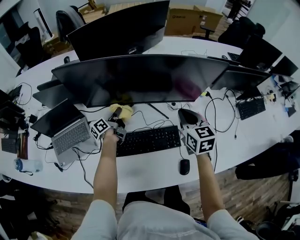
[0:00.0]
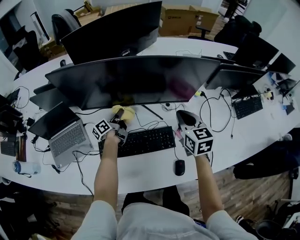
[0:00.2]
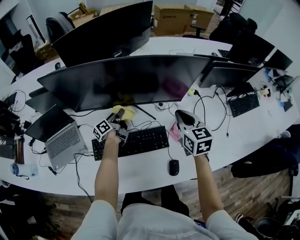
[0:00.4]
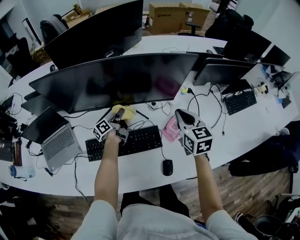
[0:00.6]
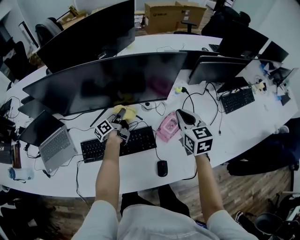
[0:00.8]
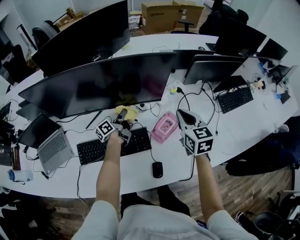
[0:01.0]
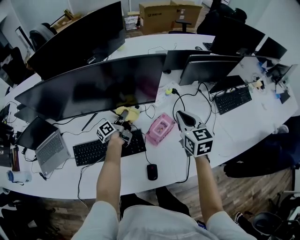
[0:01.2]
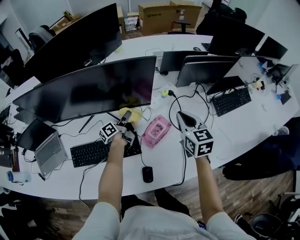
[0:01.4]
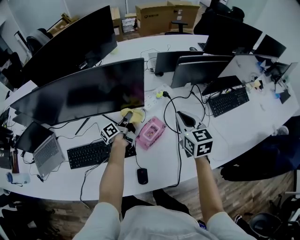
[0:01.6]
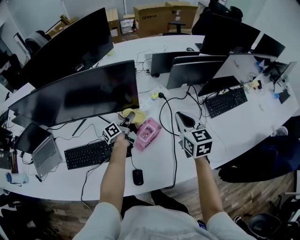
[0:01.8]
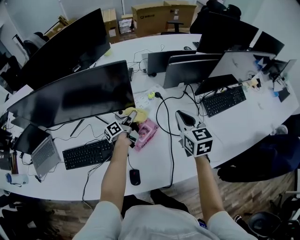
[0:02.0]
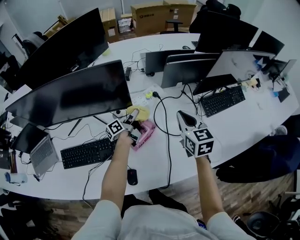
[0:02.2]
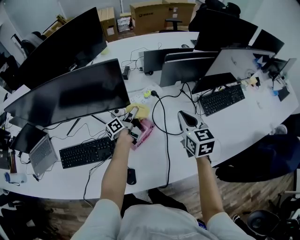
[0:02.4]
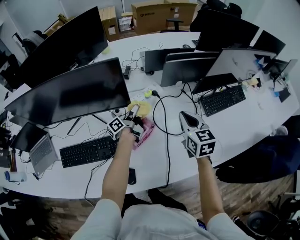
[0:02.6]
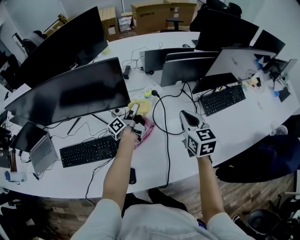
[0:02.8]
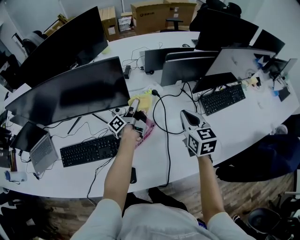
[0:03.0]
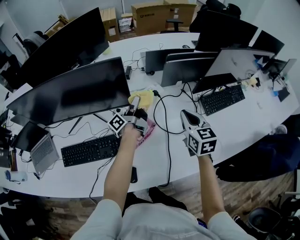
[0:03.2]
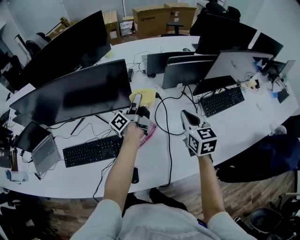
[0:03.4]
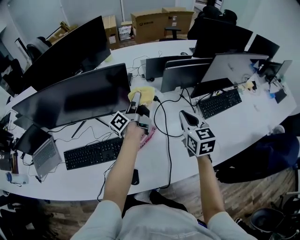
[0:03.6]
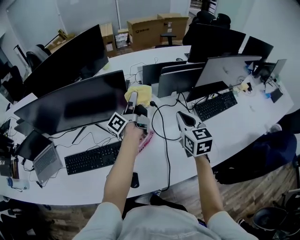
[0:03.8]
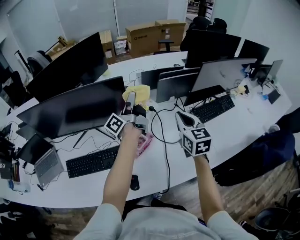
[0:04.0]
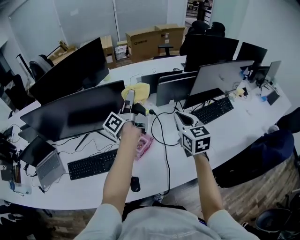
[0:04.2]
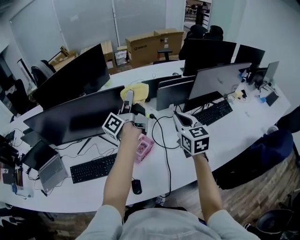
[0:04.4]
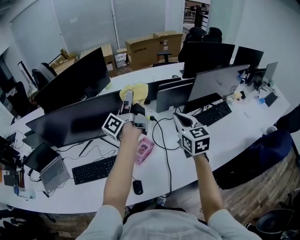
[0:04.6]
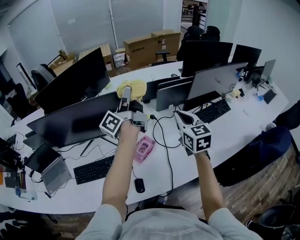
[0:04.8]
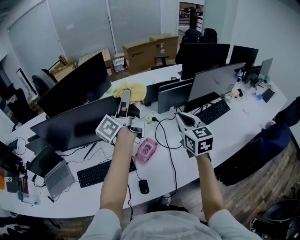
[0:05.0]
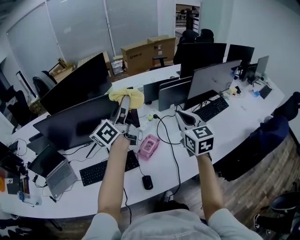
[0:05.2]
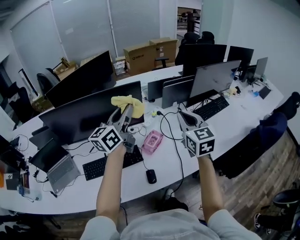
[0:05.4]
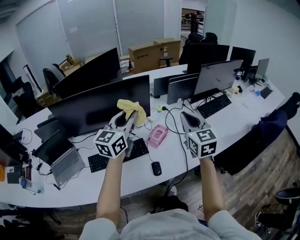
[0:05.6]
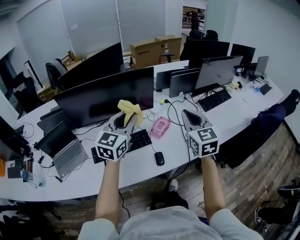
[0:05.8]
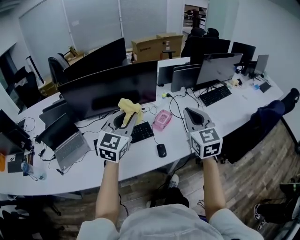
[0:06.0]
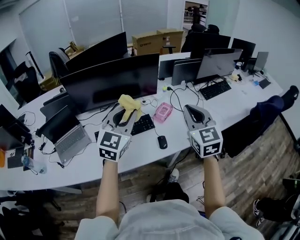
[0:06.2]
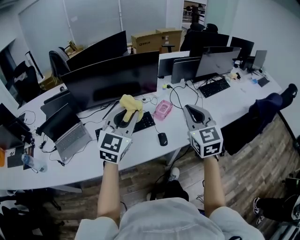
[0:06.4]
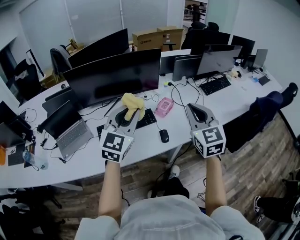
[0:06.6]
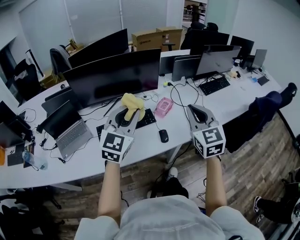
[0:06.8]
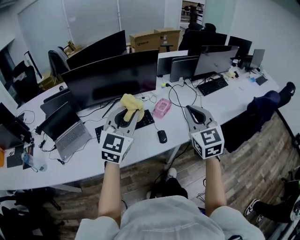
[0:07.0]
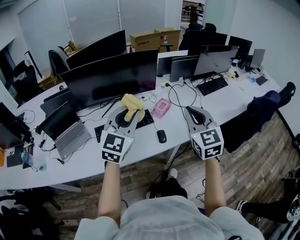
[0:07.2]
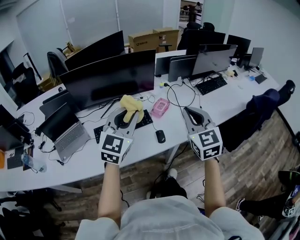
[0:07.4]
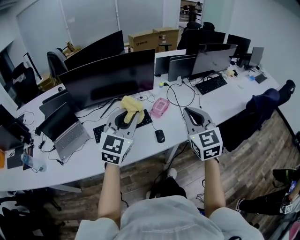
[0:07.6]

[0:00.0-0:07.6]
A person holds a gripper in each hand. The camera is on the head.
0:00.0 to 0:01.6: The two grippers go approximately 30 cm to the right.
0:01.6 to 0:03.0: The right gripper goes approximately 10 cm to the right; the left gripper travels to the right and upward by some 10 cm.
0:03.0 to 0:04.6: The right gripper travels upward by about 15 cm. Meanwhile the left gripper shifts approximately 30 cm upward, and changes its angle by about 20 degrees.
0:04.6 to 0:06.0: The left gripper goes some 35 cm backward, and twists some 90 degrees clockwise, seen from behind. The right gripper moves backward and to the left, roughly 30 cm.
0:06.0 to 0:07.6: Both grippers move backward, roughly 10 cm.

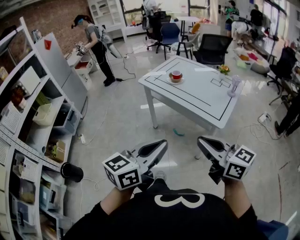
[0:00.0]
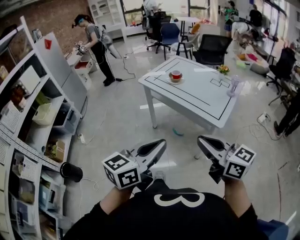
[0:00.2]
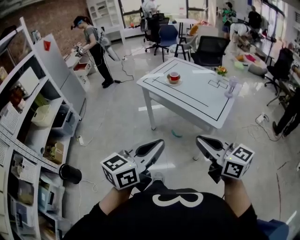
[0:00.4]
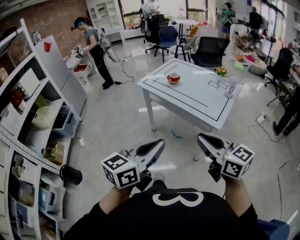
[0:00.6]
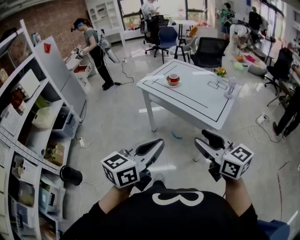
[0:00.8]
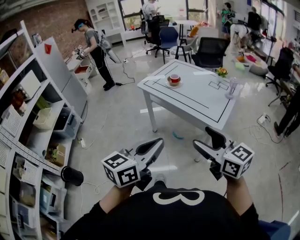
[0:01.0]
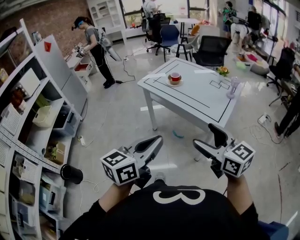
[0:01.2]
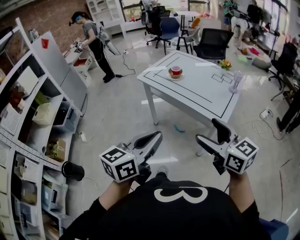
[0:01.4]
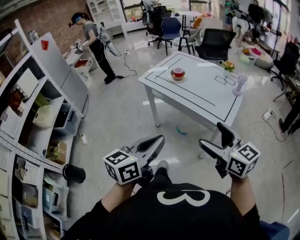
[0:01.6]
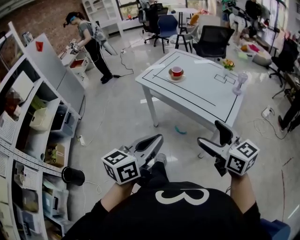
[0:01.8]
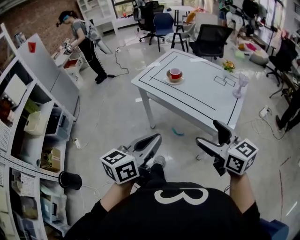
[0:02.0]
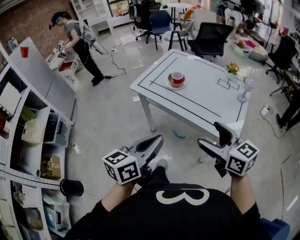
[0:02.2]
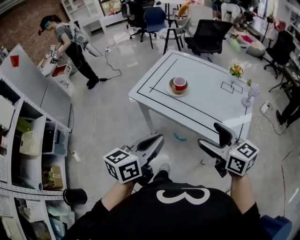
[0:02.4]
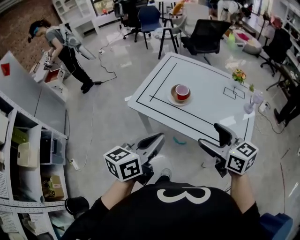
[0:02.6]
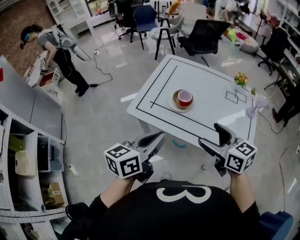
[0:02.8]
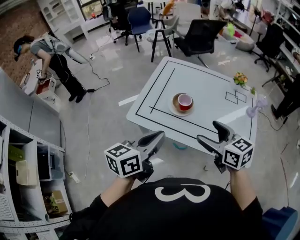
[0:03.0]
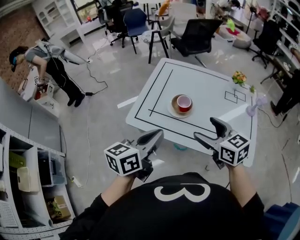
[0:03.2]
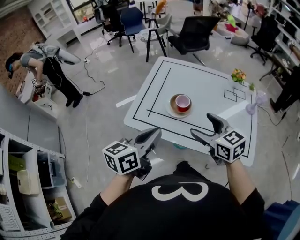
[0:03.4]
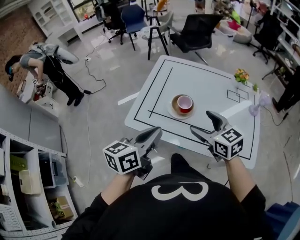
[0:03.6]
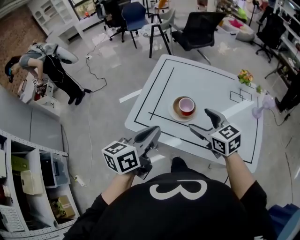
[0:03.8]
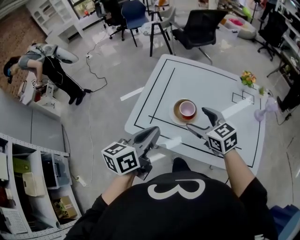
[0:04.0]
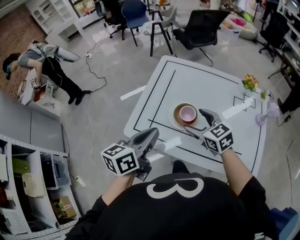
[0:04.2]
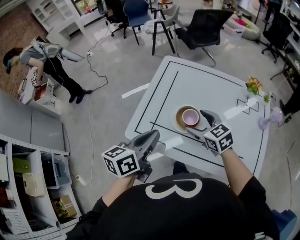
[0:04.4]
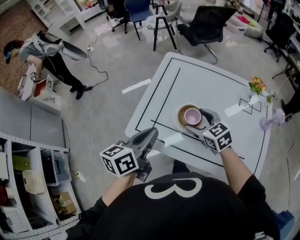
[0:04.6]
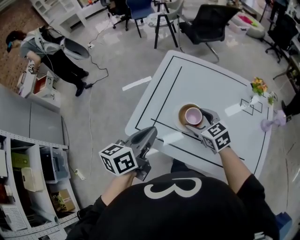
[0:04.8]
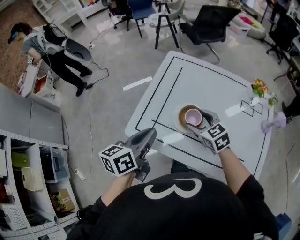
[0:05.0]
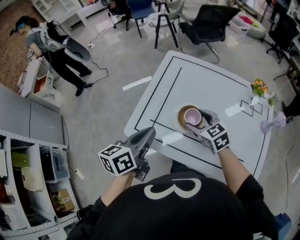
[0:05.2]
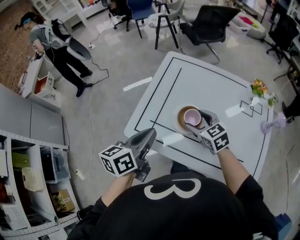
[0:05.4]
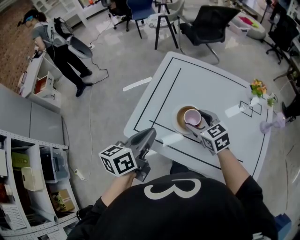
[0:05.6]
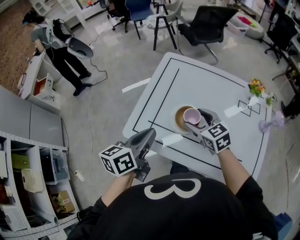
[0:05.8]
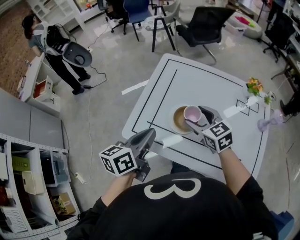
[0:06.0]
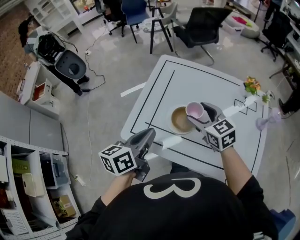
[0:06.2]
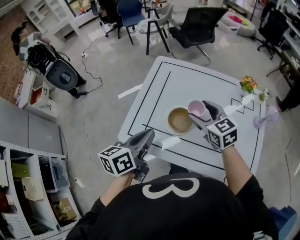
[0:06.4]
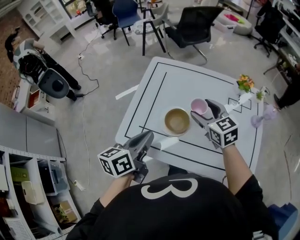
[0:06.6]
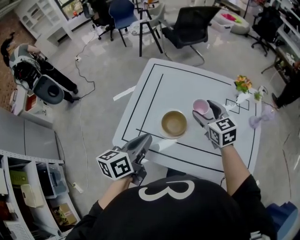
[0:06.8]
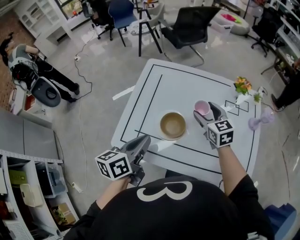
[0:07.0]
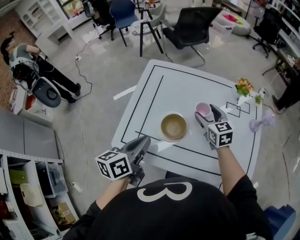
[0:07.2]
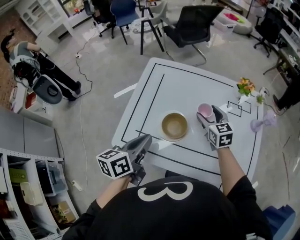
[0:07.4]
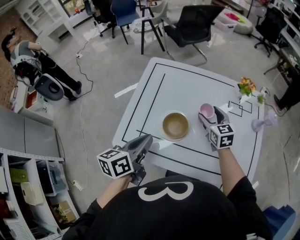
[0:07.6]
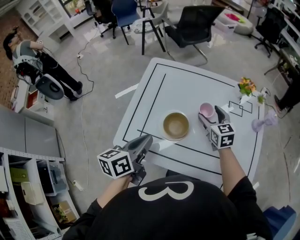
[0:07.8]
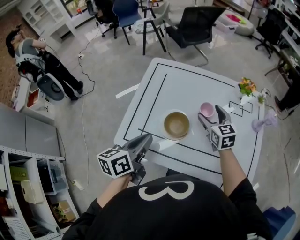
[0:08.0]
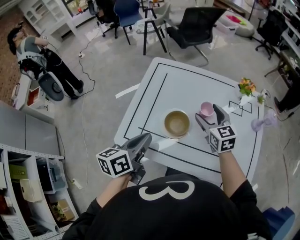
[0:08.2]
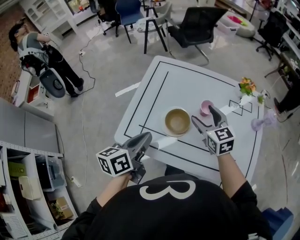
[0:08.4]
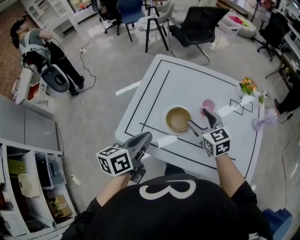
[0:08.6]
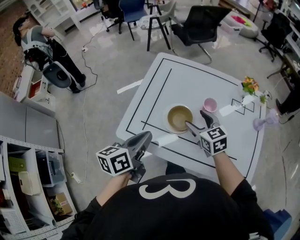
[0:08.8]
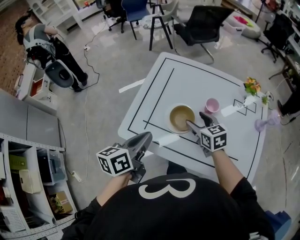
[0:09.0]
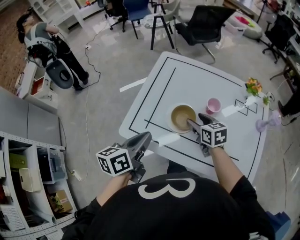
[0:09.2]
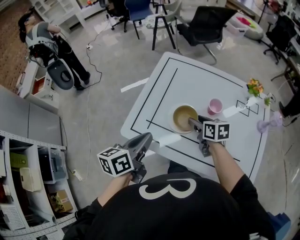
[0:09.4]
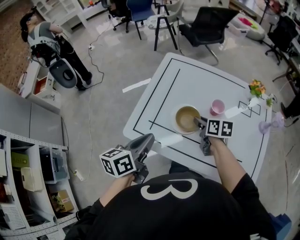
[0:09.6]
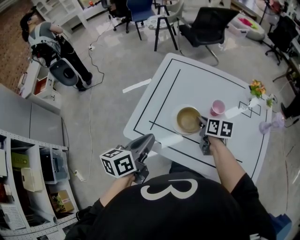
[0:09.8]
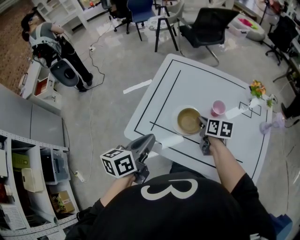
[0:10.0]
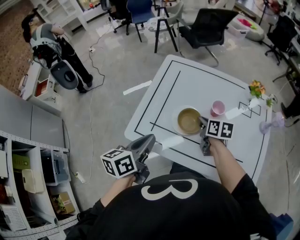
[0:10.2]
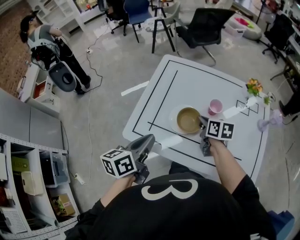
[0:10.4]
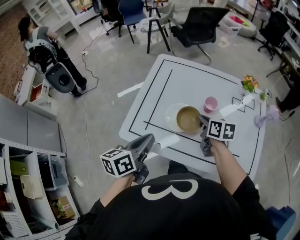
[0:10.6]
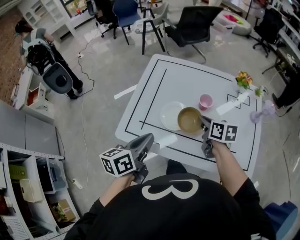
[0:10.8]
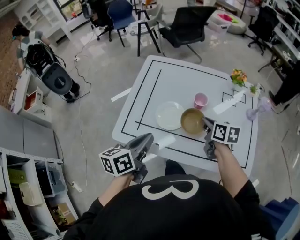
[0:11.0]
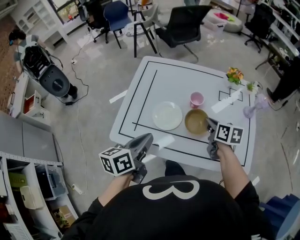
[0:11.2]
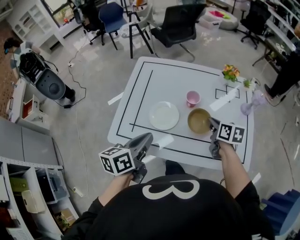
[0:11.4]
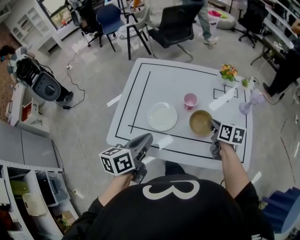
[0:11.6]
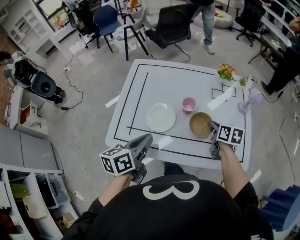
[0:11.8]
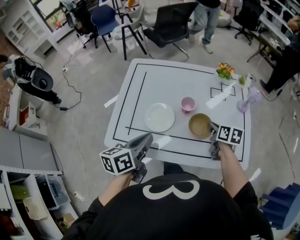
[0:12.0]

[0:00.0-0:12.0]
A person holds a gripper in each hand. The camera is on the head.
0:00.0 to 0:01.6: Both grippers move forward, roughly 10 cm. The right gripper opens up.
0:01.6 to 0:03.0: Both grippers are carried forward, about 40 cm. The right gripper changes its angle by roughly 20 degrees.
0:03.0 to 0:04.4: The left gripper heads forward, covering roughly 15 cm. The right gripper is displaced forward and downward by roughly 20 cm.
0:04.4 to 0:06.0: There are only small adjustments of the grippers.
0:06.0 to 0:07.6: The right gripper goes roughly 15 cm to the right, forward and downward, and rotates about 20 degrees.
0:07.6 to 0:09.0: The right gripper shifts about 10 cm to the left and backward.
0:09.0 to 0:10.4: The right gripper rotates approximately 30 degrees, and closes up.
0:10.4 to 0:12.0: The left gripper moves to the right, roughly 10 cm, while the right gripper moves to the right, about 20 cm.

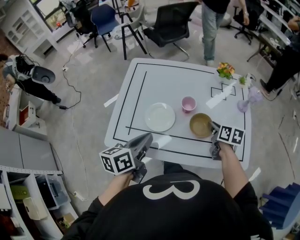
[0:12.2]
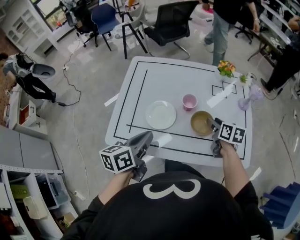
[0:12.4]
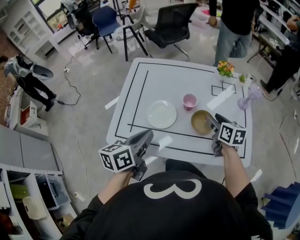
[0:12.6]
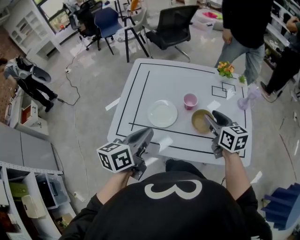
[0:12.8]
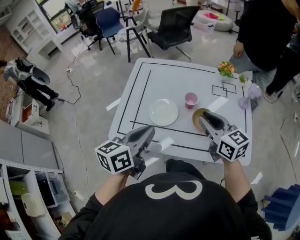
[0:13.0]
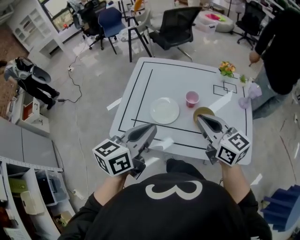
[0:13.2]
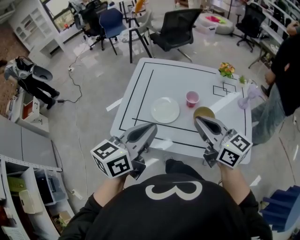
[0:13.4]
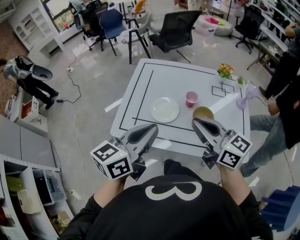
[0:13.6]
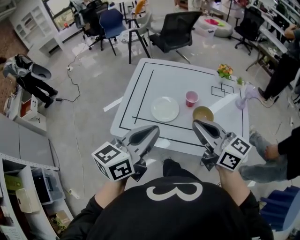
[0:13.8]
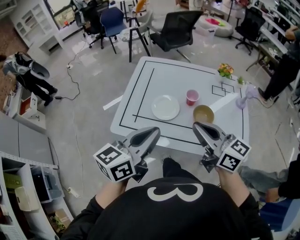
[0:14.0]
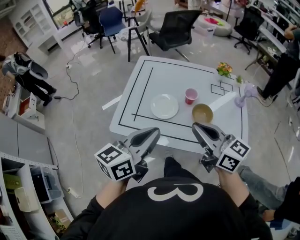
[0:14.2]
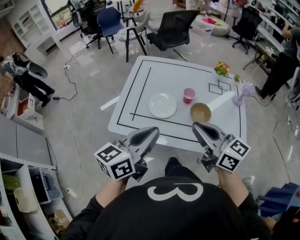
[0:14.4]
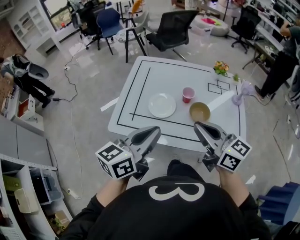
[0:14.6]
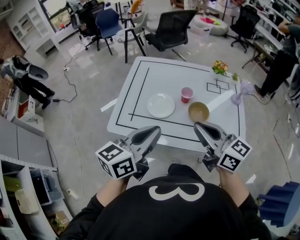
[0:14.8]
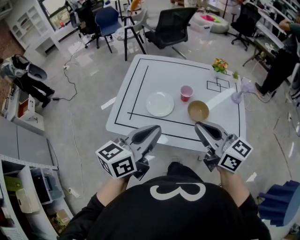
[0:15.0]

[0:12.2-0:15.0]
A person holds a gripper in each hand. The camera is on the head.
0:12.2 to 0:13.6: The right gripper travels upward, to the left and backward by some 30 cm, angles its fingers upward, by about 40 degrees, and opens, then closes once more. The left gripper heads upward and backward, covering roughly 15 cm, and turns by roughly 20 degrees.
0:13.6 to 0:15.0: The grippers stay close to where they were, moving slightly.

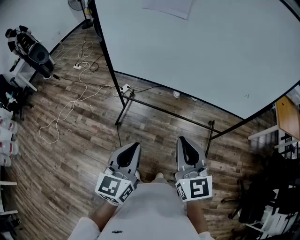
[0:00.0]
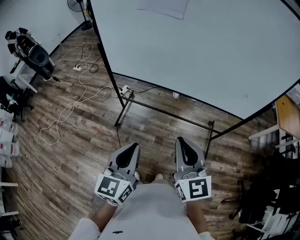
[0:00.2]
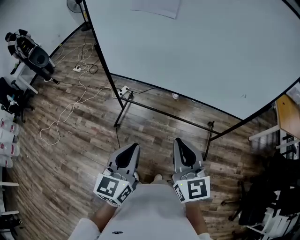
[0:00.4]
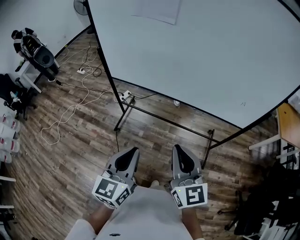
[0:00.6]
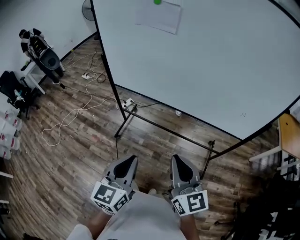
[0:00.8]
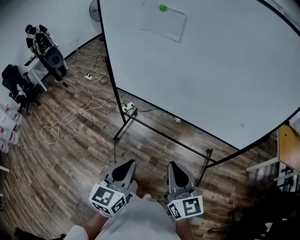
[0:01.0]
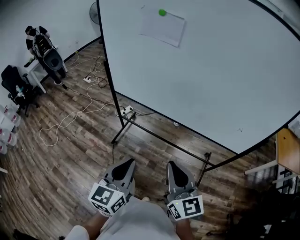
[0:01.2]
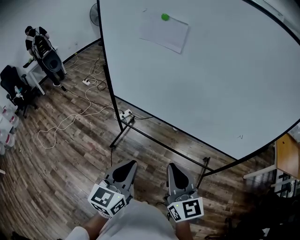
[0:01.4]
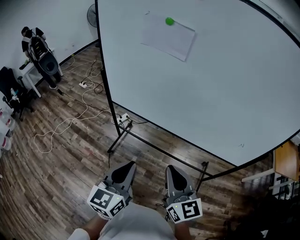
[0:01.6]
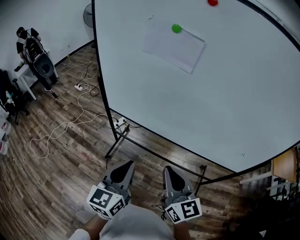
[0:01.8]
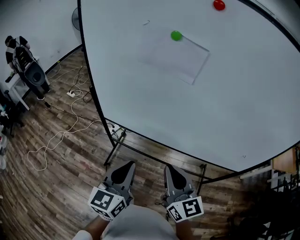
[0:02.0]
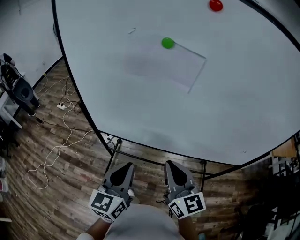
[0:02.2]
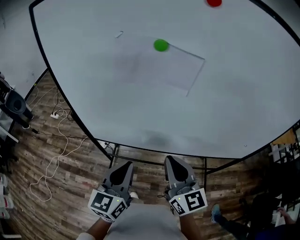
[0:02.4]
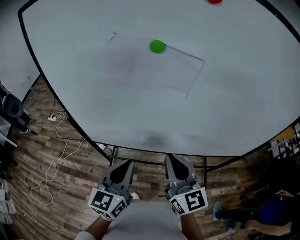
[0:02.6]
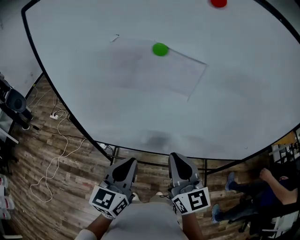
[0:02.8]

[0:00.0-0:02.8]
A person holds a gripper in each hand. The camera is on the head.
0:00.0 to 0:01.4: The left gripper moves to the right and forward, some 10 cm; the right gripper moves to the right, about 5 cm.
0:01.4 to 0:02.8: Both grippers travel together forward, approximately 30 cm.
